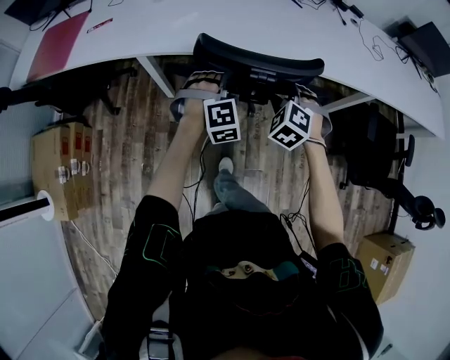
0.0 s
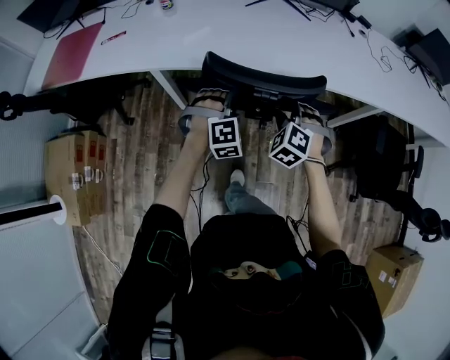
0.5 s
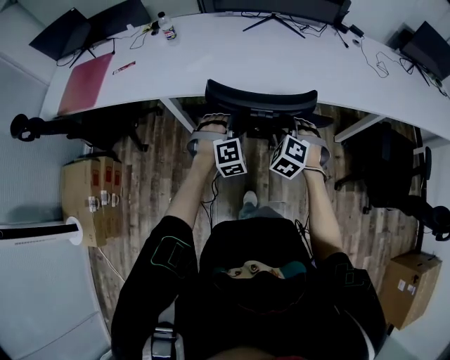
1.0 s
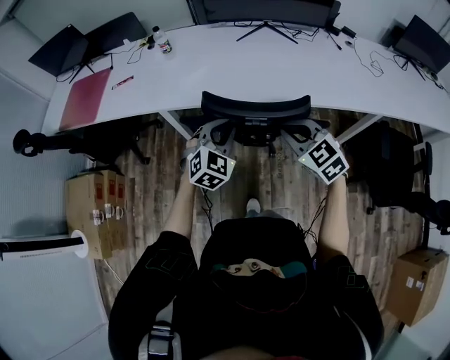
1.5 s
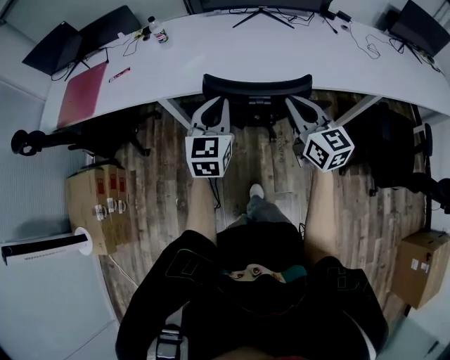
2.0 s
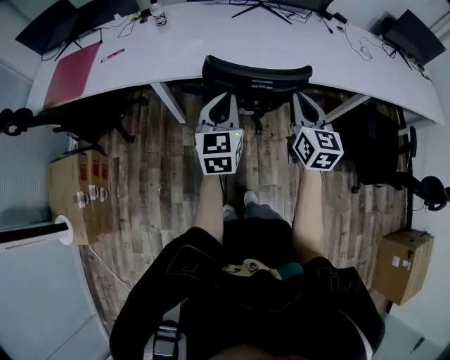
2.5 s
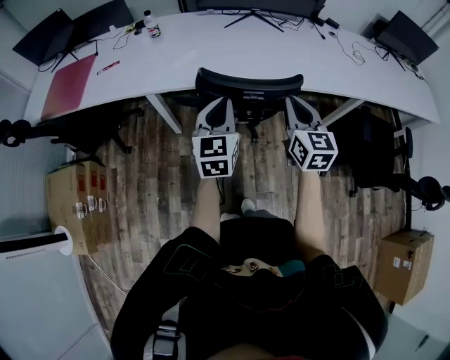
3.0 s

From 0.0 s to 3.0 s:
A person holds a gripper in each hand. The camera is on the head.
From 0.0 s to 1.5 s: Both grippers move upward, approximately 10 cm. The left gripper swivels roughly 40 degrees; the right gripper changes its angle by roughly 40 degrees, and closes its fingers.
From 1.5 s to 3.0 s: Both grippers travel together upward, roughly 5 cm. The left gripper changes its angle by approximately 40 degrees, while the right gripper swivels about 40 degrees.

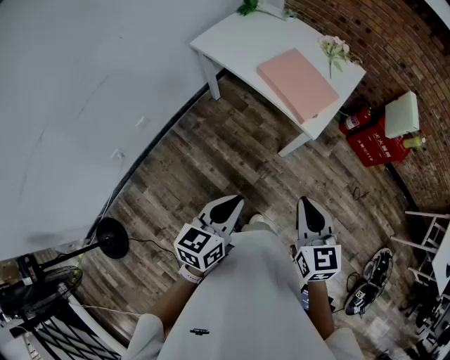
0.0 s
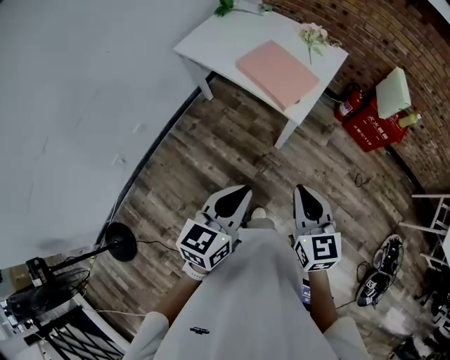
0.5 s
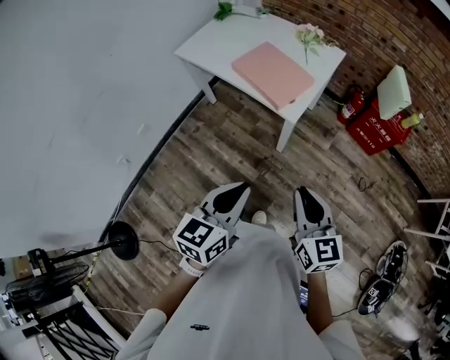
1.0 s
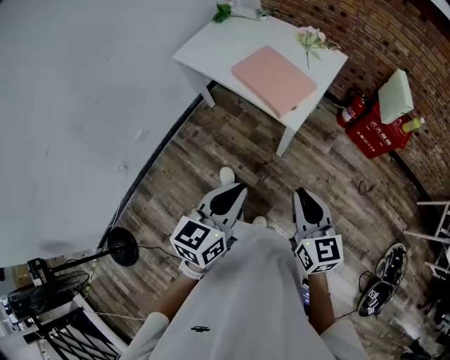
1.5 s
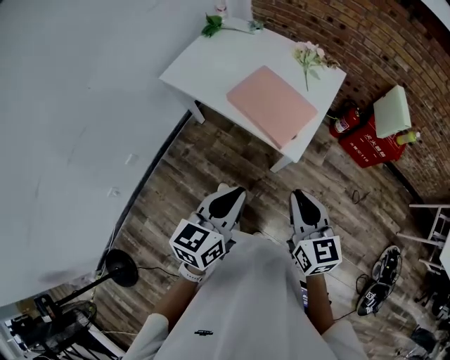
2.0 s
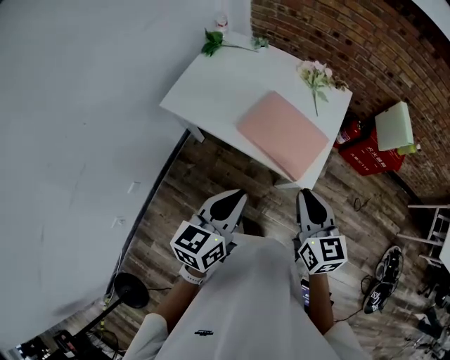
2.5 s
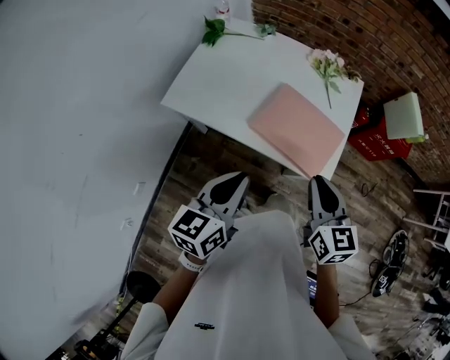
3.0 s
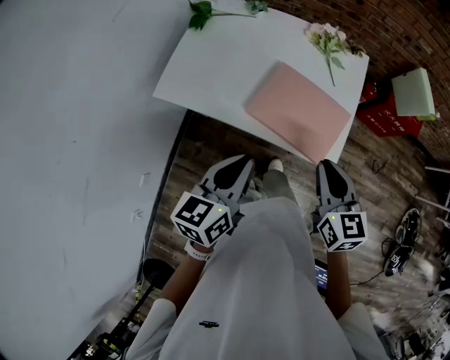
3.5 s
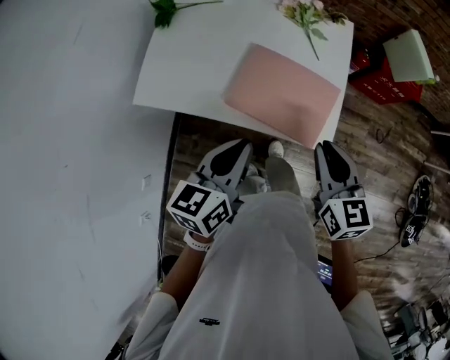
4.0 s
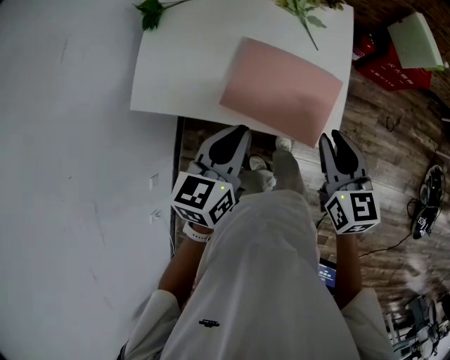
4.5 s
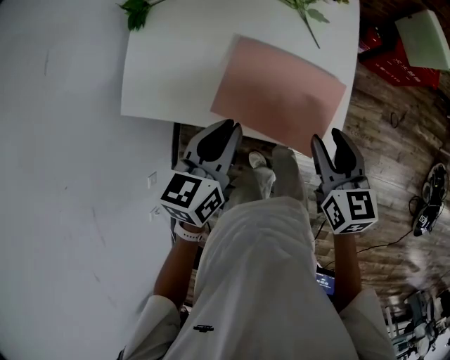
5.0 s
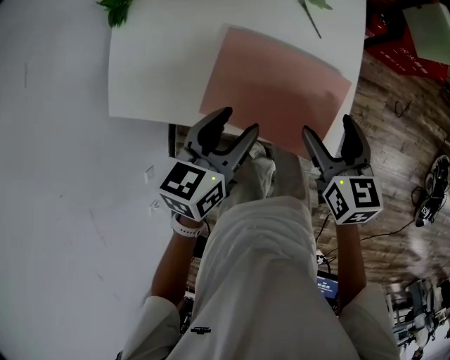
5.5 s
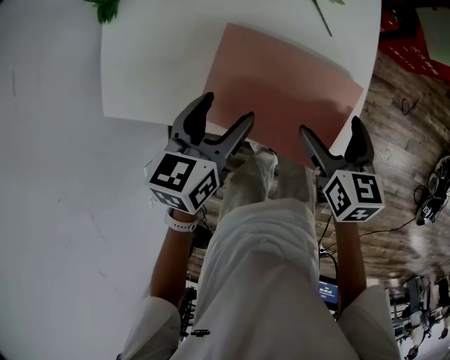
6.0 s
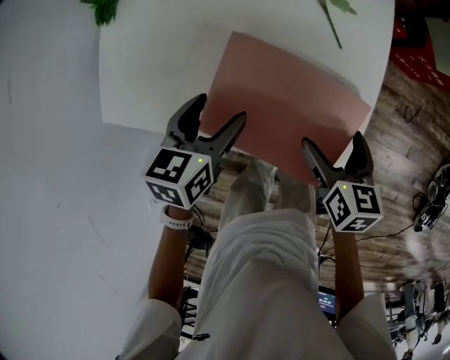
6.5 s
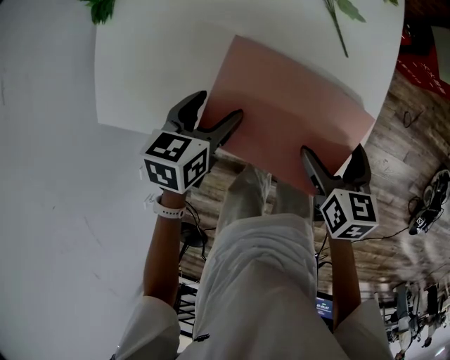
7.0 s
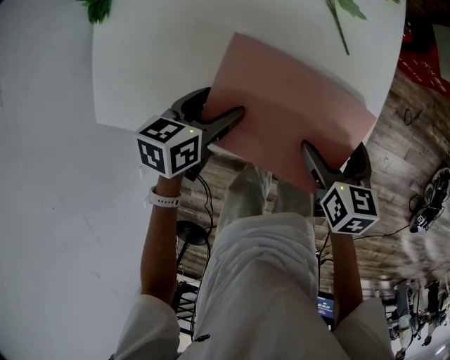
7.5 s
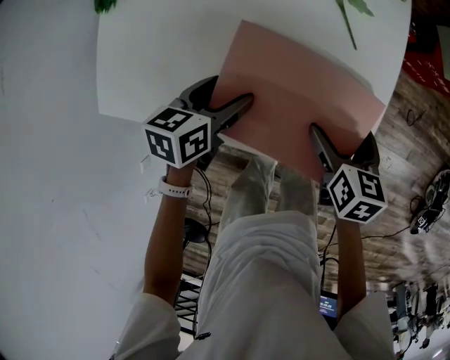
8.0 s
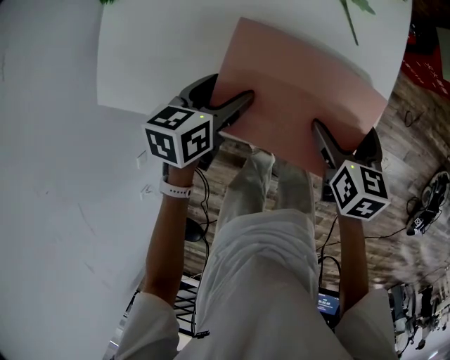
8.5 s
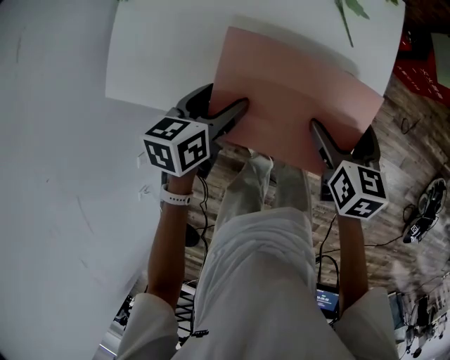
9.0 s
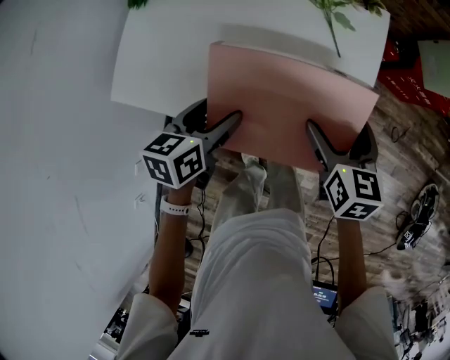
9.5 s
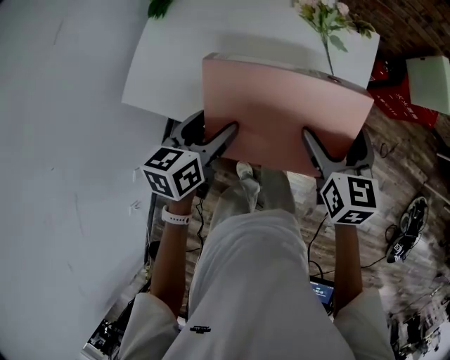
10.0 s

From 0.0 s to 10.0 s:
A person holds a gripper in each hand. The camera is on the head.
From 0.0 s to 2.0 s: The two grippers go some 15 cm forward.
From 2.0 s to 4.0 s: The left gripper shifts roughly 25 cm forward and to the left; the right gripper shifts roughly 20 cm forward, and swivels approximately 20 degrees.
From 4.0 s to 6.0 s: The right gripper shifts approximately 20 cm downward and forward, swivels roughly 20 degrees, and opens up, while the left gripper travels forward and downward by approximately 20 cm, and opens up.
From 6.0 s to 8.0 s: The right gripper heads downward, covering roughly 5 cm. The left gripper travels downward by some 10 cm.
From 8.0 s to 10.0 s: The left gripper goes some 15 cm upward and backward, while the right gripper moves upward, roughly 15 cm, and turns by about 30 degrees.

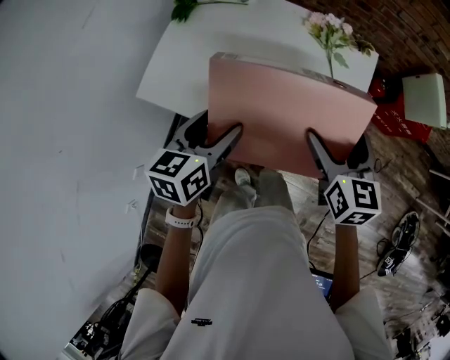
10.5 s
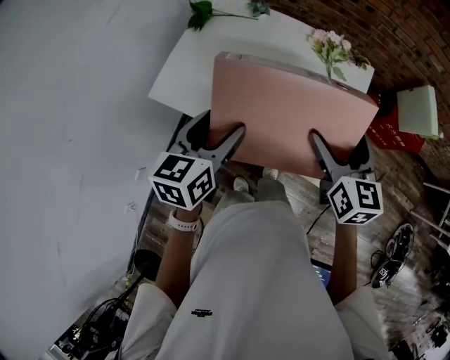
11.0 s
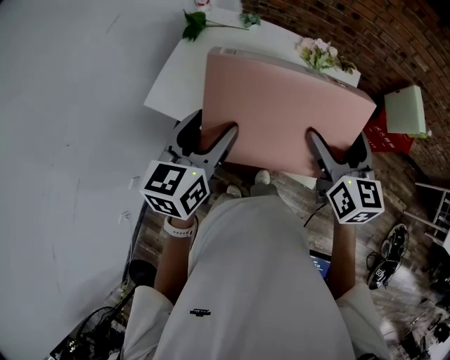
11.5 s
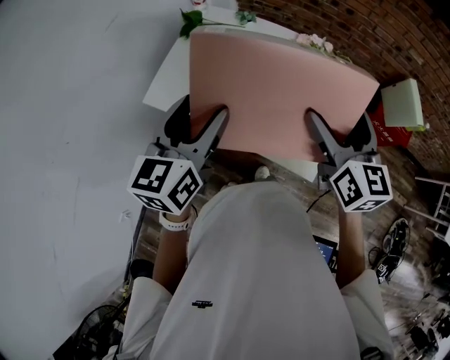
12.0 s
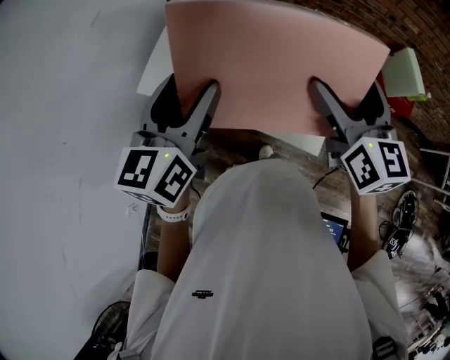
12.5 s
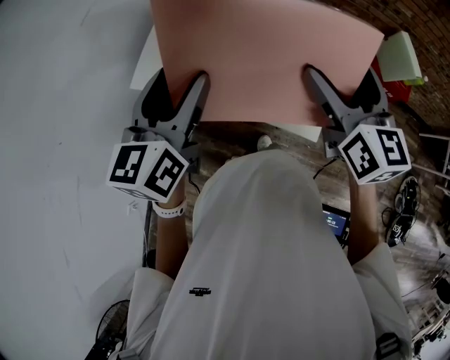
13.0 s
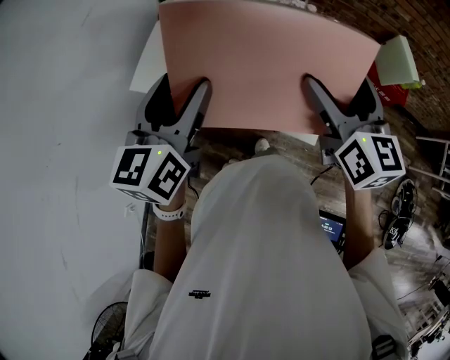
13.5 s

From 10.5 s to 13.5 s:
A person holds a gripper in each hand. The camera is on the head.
From 10.5 s to 12.0 s: The grippers both shift upward by some 15 cm. The left gripper swivels roughly 20 degrees.
From 12.0 s to 13.5 s: The grippers stay close to where they were, moving slightly.

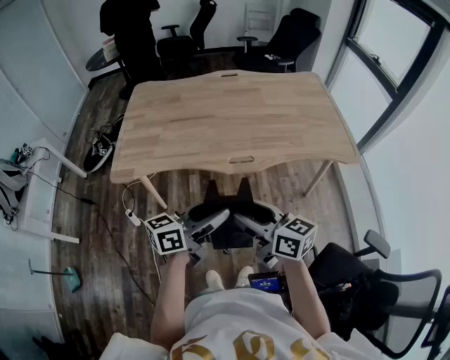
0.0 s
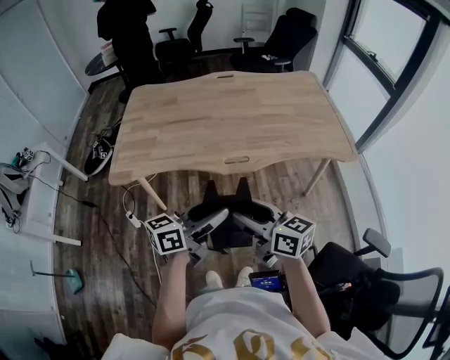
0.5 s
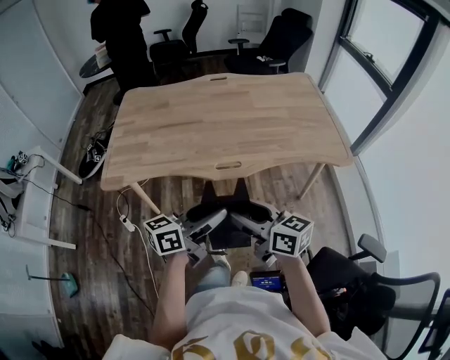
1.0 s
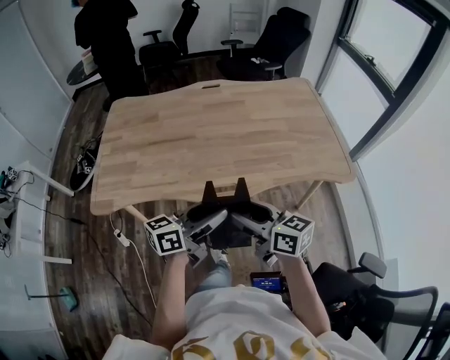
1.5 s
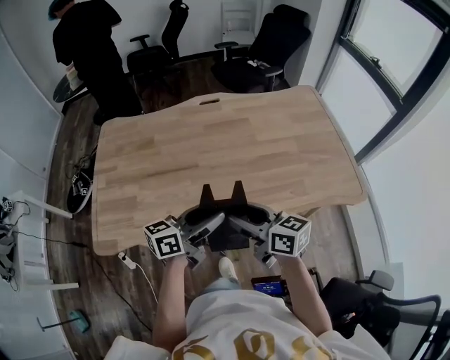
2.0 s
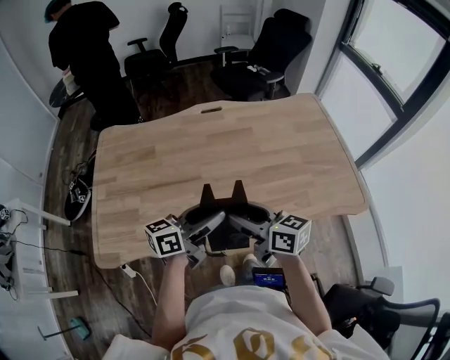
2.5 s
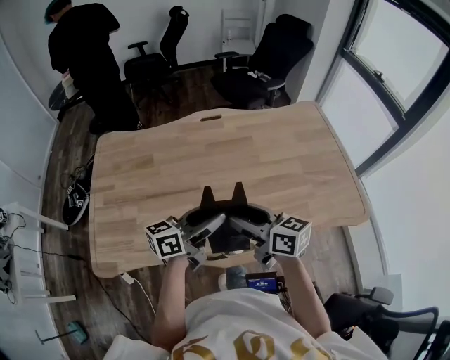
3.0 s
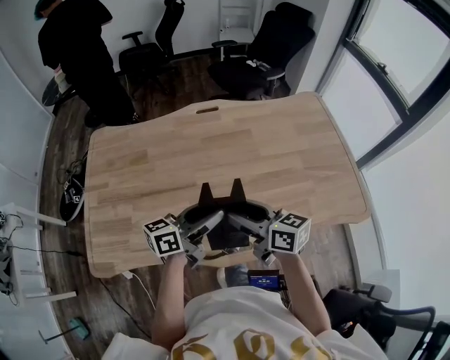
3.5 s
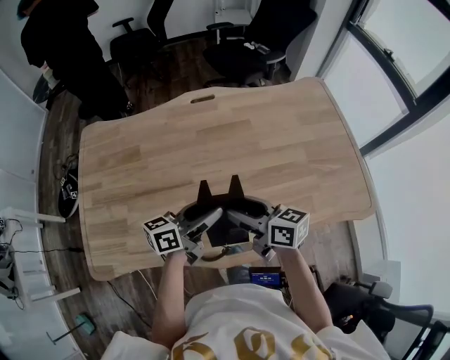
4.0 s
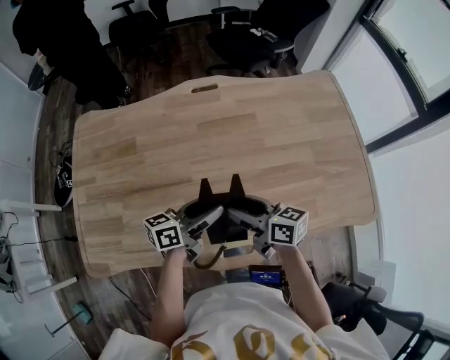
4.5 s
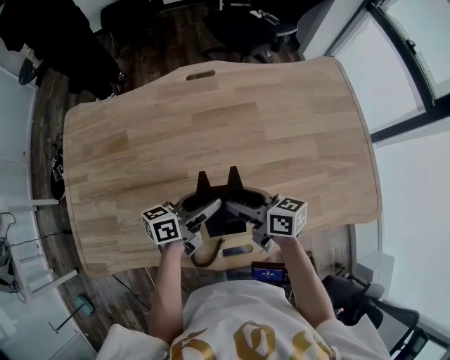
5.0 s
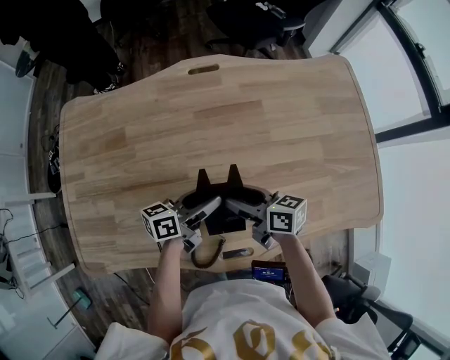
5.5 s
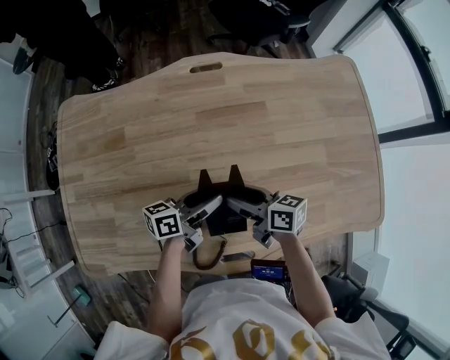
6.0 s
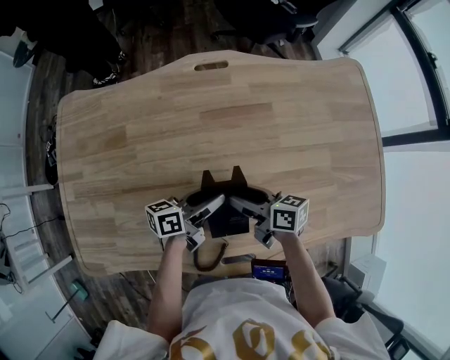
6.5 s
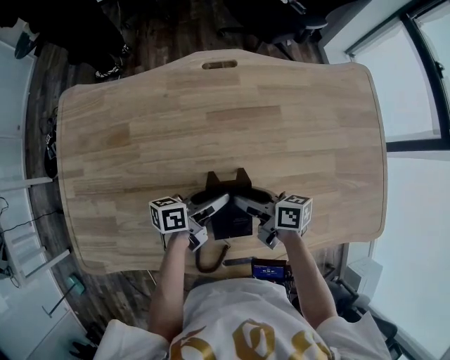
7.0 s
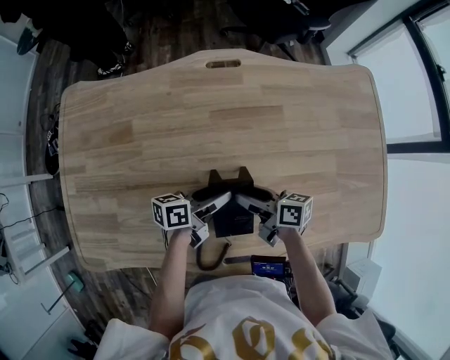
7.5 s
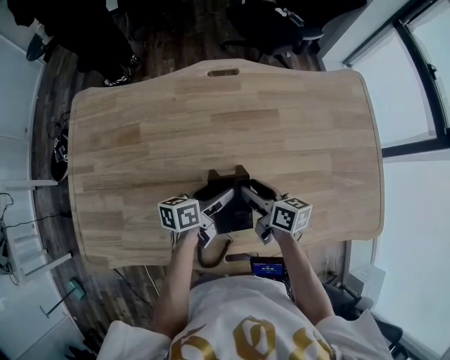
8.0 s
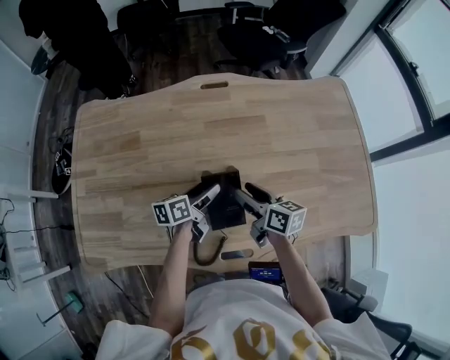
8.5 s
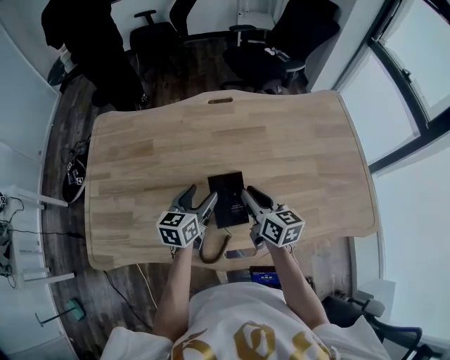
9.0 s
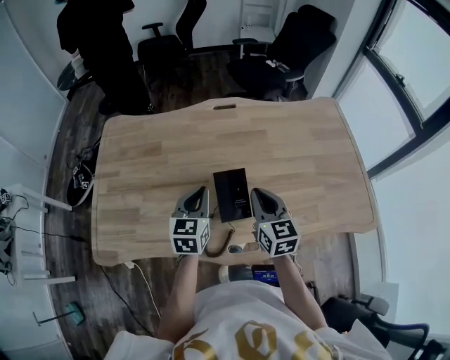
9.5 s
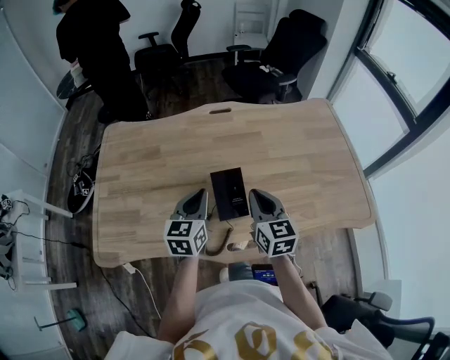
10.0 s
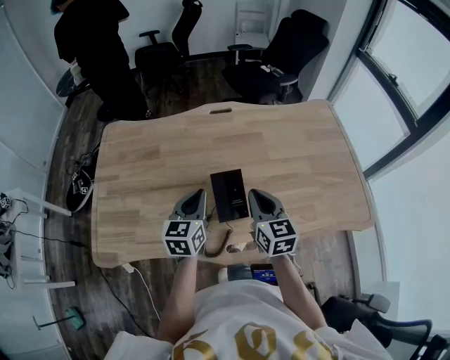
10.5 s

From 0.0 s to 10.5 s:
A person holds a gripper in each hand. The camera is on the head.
From 0.0 s to 2.0 s: Both grippers travel together forward, about 30 cm.
From 2.0 s to 4.0 s: The two grippers go roughly 15 cm forward and downward.
From 4.0 s to 6.5 s: Both grippers travel together downward and forward, about 20 cm.
From 6.5 s to 8.5 s: The right gripper changes place by some 5 cm.
From 8.5 s to 10.5 s: Both grippers travel together upward and backward, approximately 15 cm. The right gripper rotates approximately 40 degrees, and closes up. The left gripper rotates about 50 degrees, and closes.
